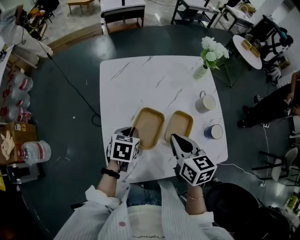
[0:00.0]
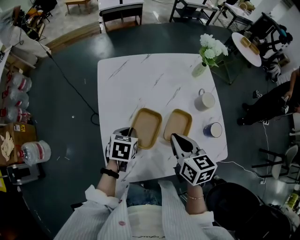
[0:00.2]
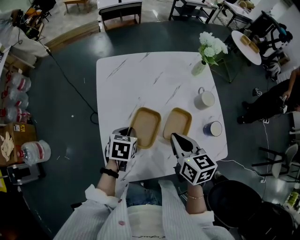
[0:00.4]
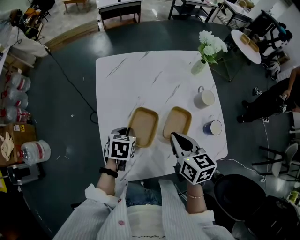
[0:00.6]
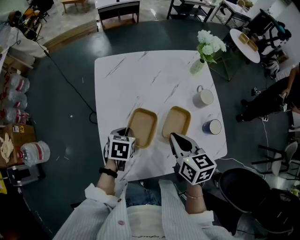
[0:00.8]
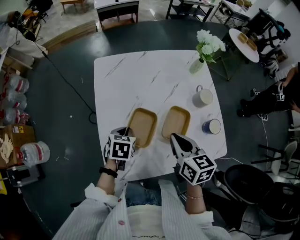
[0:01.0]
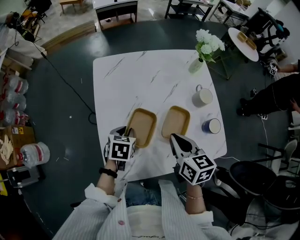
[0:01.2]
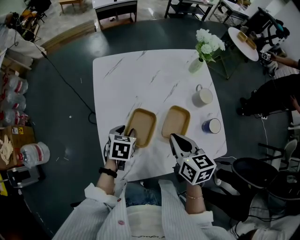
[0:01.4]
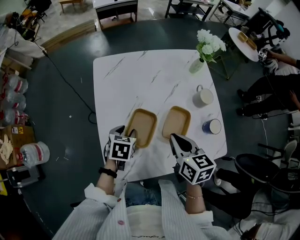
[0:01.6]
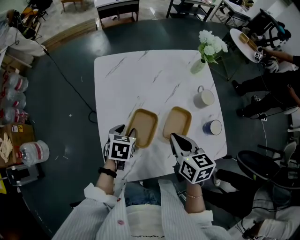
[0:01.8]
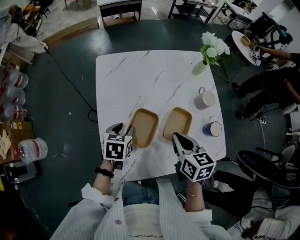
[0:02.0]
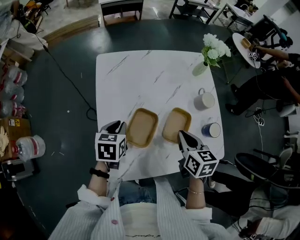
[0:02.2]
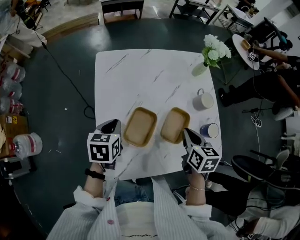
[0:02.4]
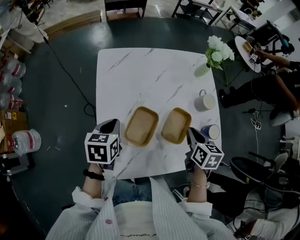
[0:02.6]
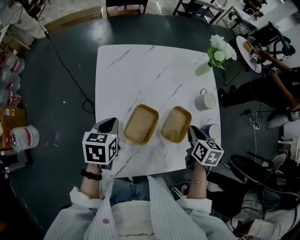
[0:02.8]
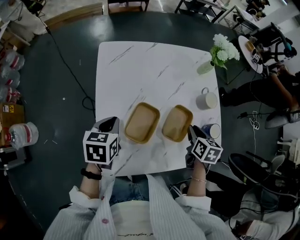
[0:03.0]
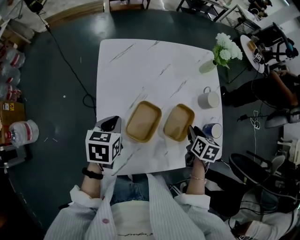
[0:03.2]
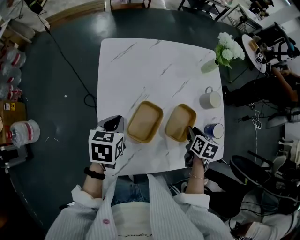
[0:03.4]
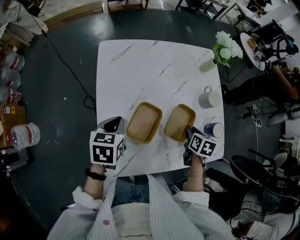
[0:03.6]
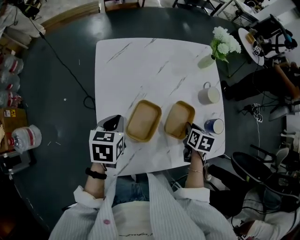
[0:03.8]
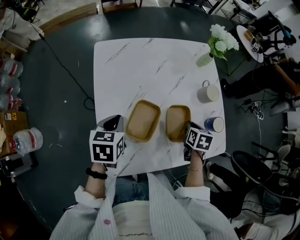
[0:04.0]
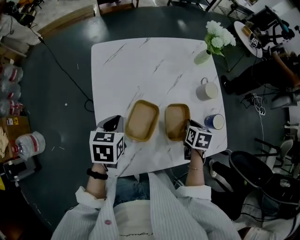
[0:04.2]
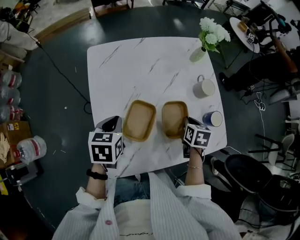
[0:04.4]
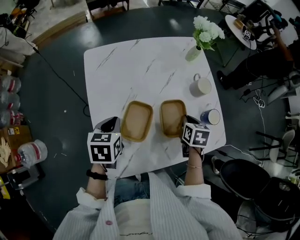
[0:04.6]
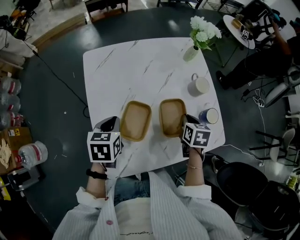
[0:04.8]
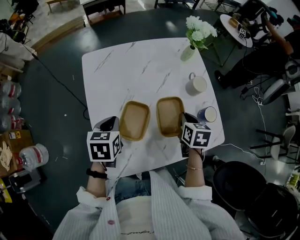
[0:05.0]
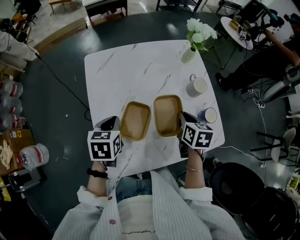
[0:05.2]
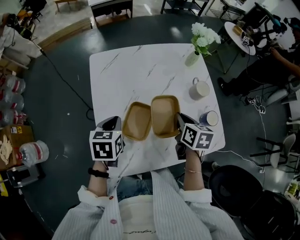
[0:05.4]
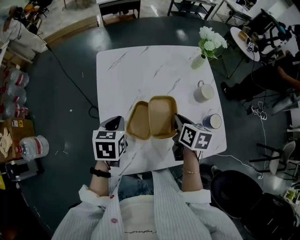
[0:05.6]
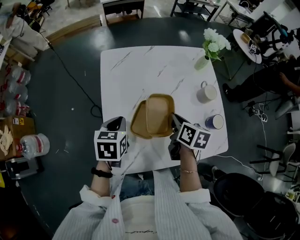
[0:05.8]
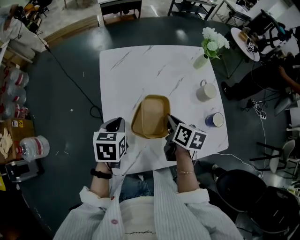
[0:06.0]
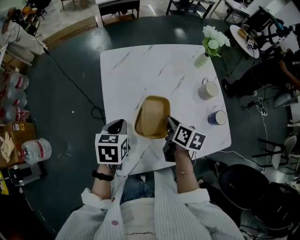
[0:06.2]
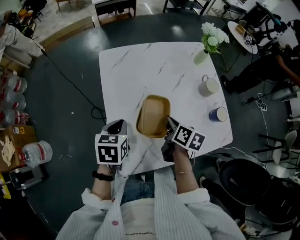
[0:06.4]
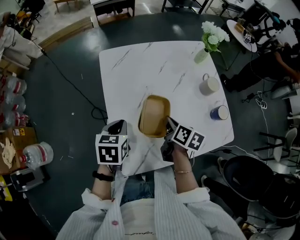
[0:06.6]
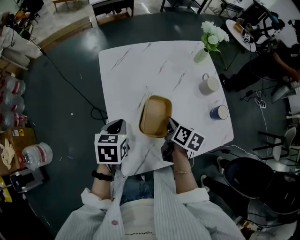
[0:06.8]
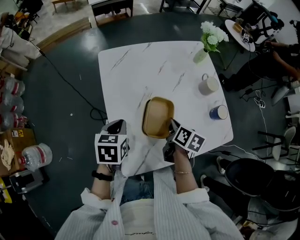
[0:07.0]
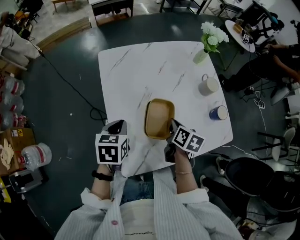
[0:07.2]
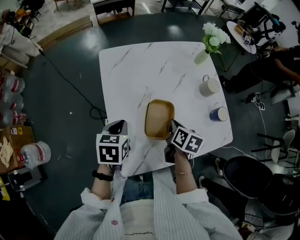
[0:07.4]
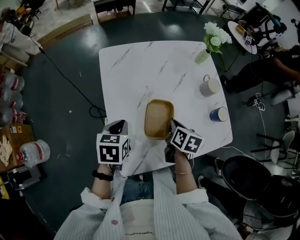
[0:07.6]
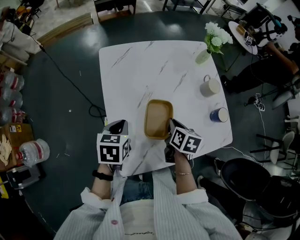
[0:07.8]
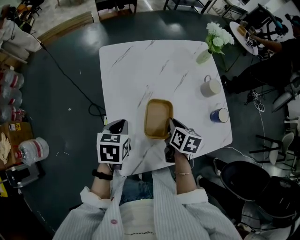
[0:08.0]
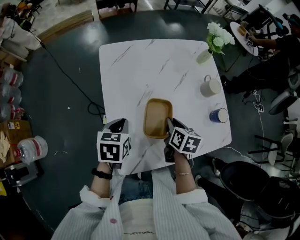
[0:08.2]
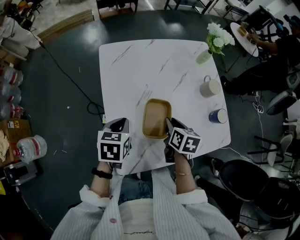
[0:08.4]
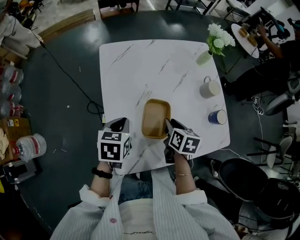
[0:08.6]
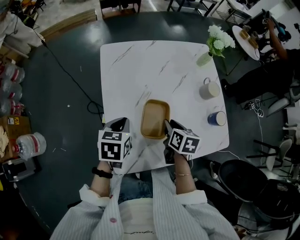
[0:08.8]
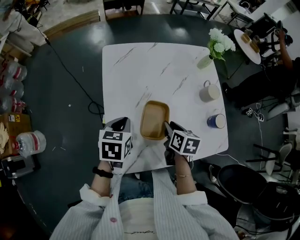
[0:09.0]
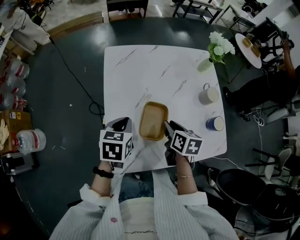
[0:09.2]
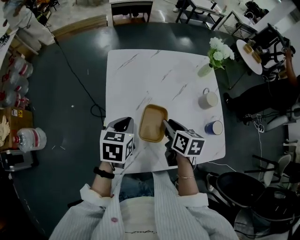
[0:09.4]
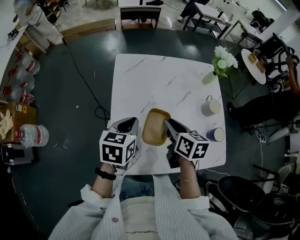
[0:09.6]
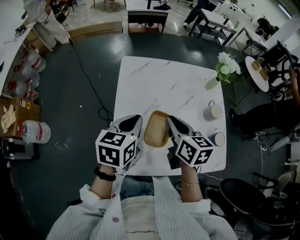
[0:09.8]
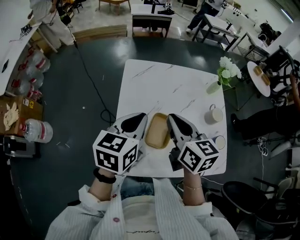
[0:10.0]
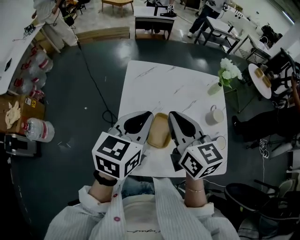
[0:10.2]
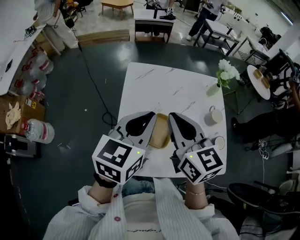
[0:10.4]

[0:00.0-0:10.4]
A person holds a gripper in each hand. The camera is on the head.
0:00.0 to 0:01.4: The left gripper opens its fingers.
0:01.4 to 0:03.0: The right gripper heads to the right and downward, covering some 15 cm, and swivels some 20 degrees, while the left gripper goes approximately 10 cm upward and to the left, and closes.
0:03.0 to 0:04.4: The grippers stay close to where they were, moving slightly.
0:04.4 to 0:06.0: The right gripper moves to the left and upward, some 15 cm, and swivels some 30 degrees.
0:06.0 to 0:07.4: The right gripper moves some 5 cm.
0:07.4 to 0:09.0: The right gripper opens.
0:09.0 to 0:10.4: Both grippers travel together upward, approximately 25 cm. The right gripper points its fingers about 40 degrees further upward, and closes up, while the left gripper angles its fingers upward, by roughly 30 degrees.

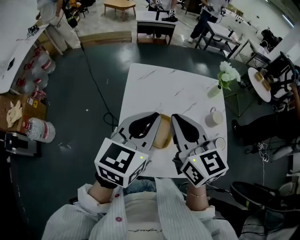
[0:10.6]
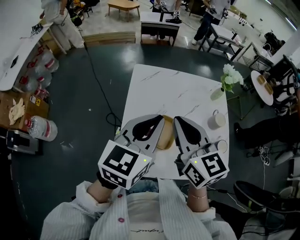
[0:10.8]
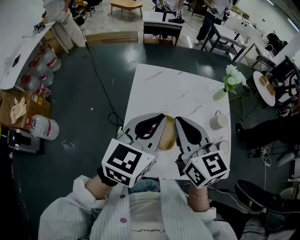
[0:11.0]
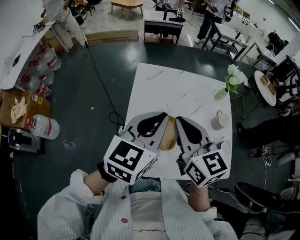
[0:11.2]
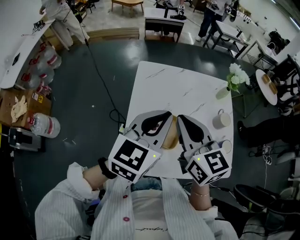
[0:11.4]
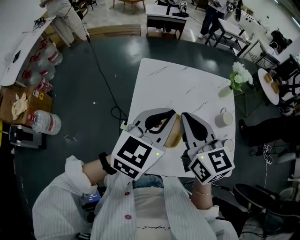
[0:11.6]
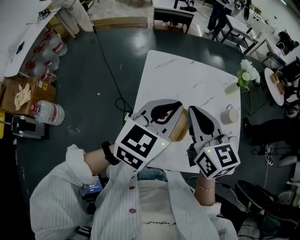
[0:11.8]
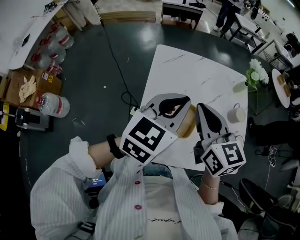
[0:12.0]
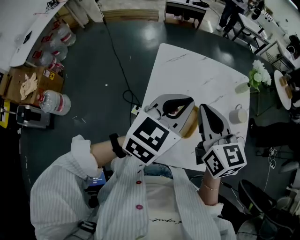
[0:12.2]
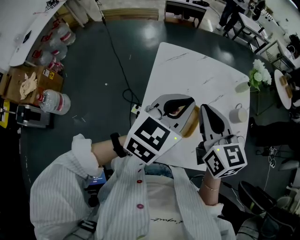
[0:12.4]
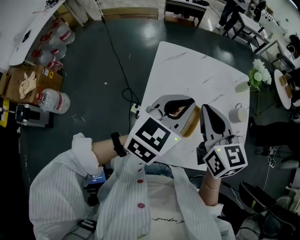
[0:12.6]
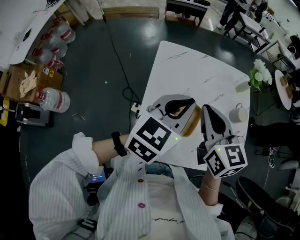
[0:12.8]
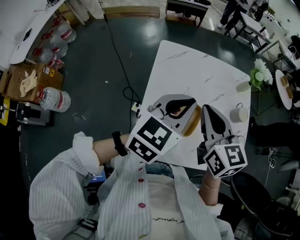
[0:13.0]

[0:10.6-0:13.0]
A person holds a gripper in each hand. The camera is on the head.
0:10.6 to 0:13.0: The grippers stay close to where they were, moving slightly.

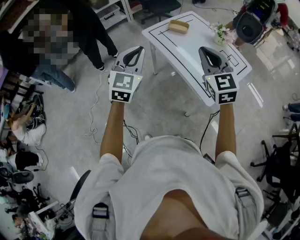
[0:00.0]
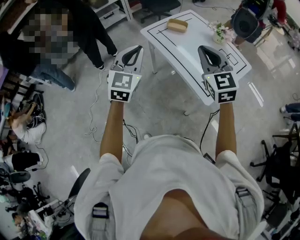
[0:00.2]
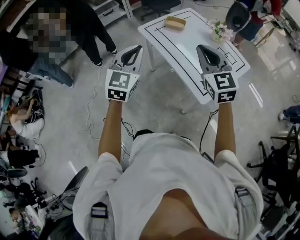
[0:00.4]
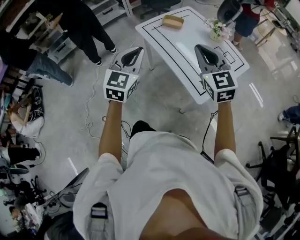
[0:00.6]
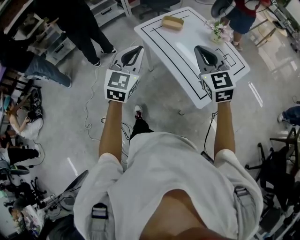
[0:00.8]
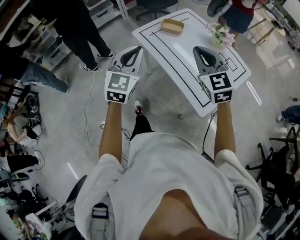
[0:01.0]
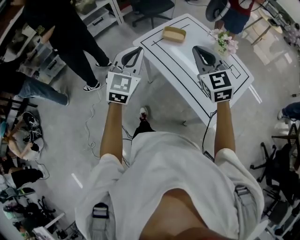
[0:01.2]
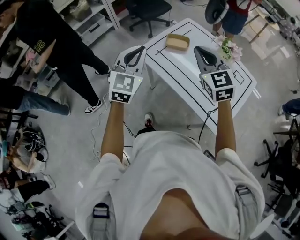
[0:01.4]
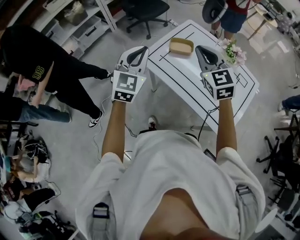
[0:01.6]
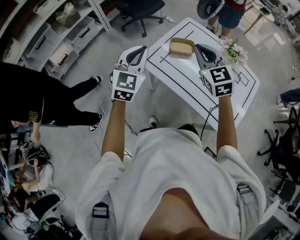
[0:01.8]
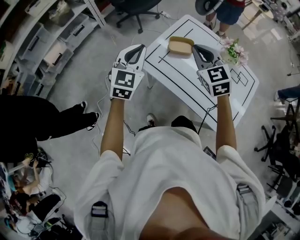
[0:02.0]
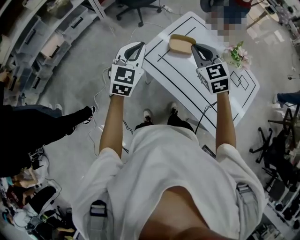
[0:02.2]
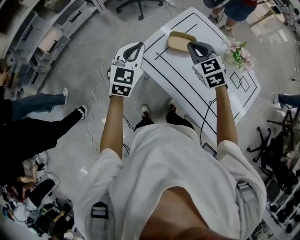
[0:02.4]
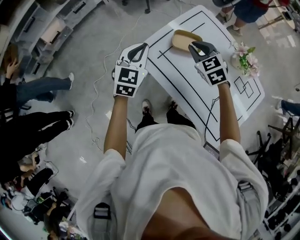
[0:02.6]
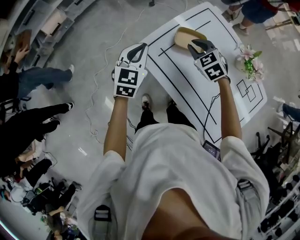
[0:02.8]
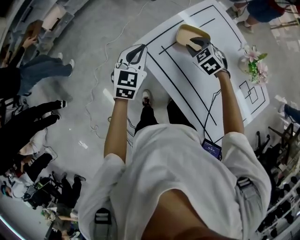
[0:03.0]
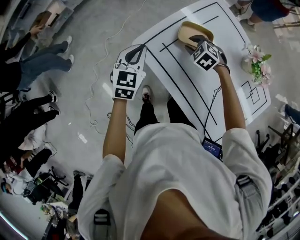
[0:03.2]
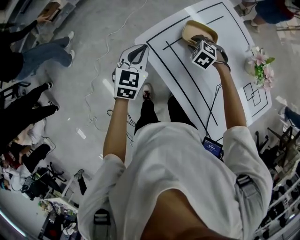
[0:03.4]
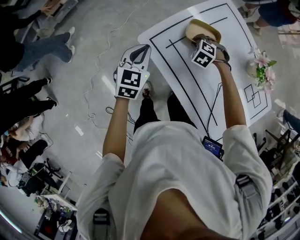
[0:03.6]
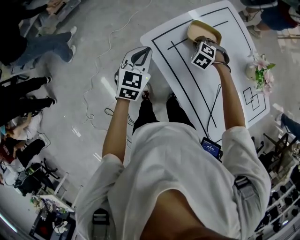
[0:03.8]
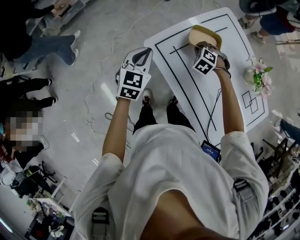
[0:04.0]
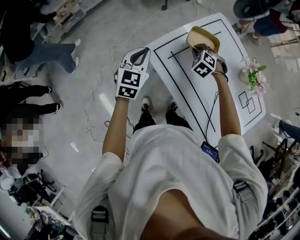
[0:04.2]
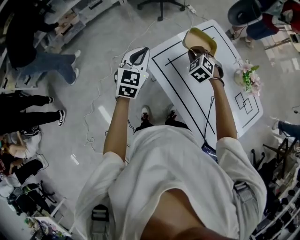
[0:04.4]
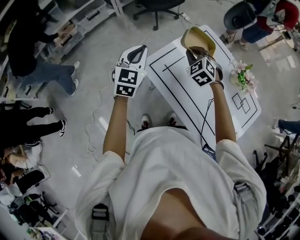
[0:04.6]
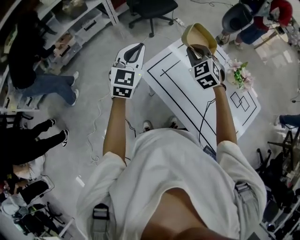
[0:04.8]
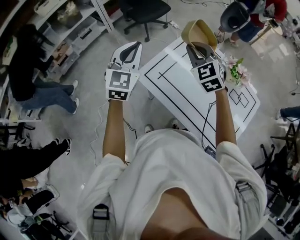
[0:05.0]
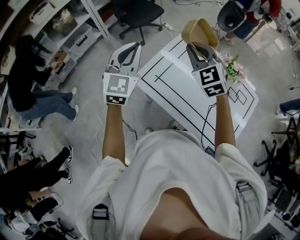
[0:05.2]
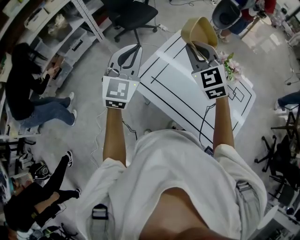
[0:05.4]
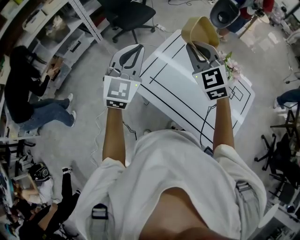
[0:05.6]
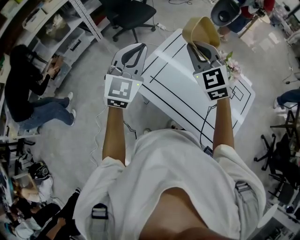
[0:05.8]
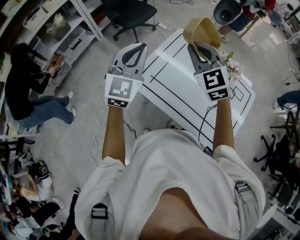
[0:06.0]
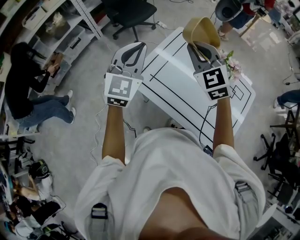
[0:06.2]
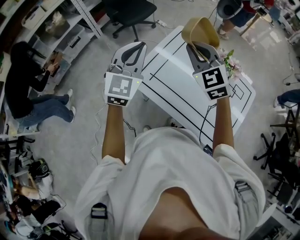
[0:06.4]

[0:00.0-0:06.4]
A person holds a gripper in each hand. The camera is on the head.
0:00.0 to 0:01.6: The grippers both shift forward by roughly 30 cm.
0:01.6 to 0:03.2: Both grippers move downward and forward, some 35 cm. The right gripper tilts its fingers roughly 50 degrees downward, and opens. The left gripper changes its angle by about 30 degrees.
0:03.2 to 0:04.8: Both grippers move upward, roughly 25 cm. The right gripper tips its fingers upward by some 30 degrees, and closes up; the left gripper turns by some 20 degrees.
0:04.8 to 0:06.4: The right gripper goes roughly 10 cm upward and to the right. Meanwhile the left gripper goes approximately 10 cm to the right and upward.

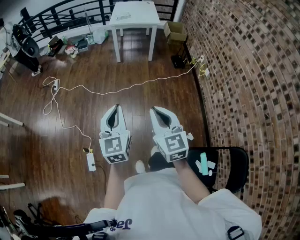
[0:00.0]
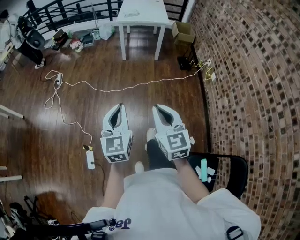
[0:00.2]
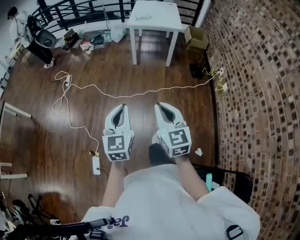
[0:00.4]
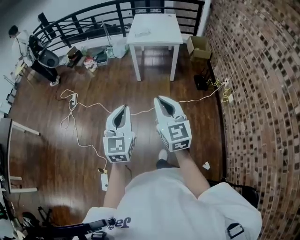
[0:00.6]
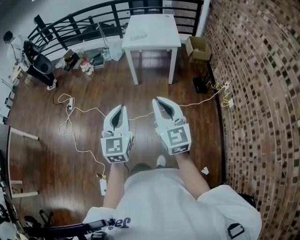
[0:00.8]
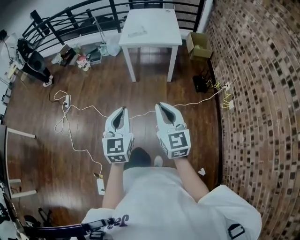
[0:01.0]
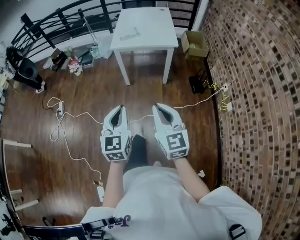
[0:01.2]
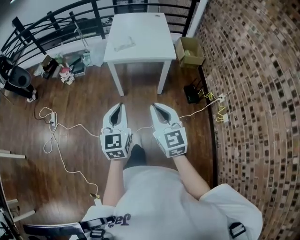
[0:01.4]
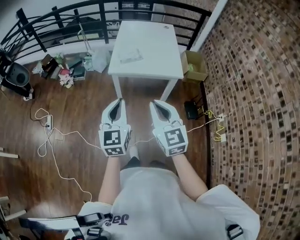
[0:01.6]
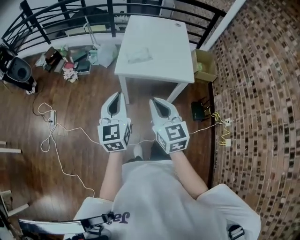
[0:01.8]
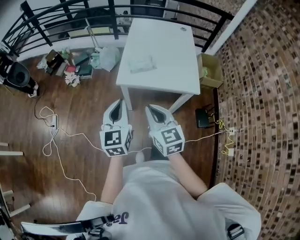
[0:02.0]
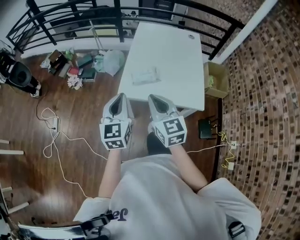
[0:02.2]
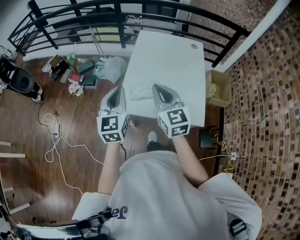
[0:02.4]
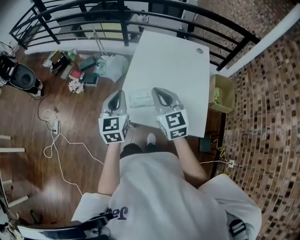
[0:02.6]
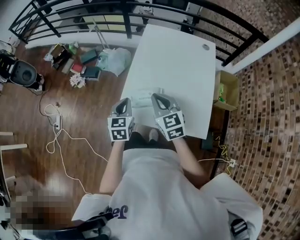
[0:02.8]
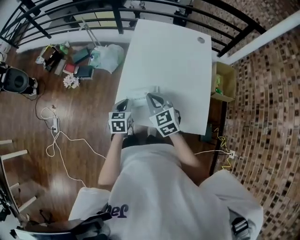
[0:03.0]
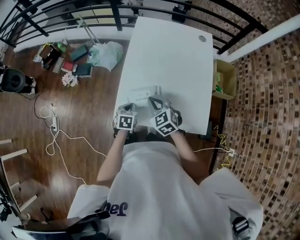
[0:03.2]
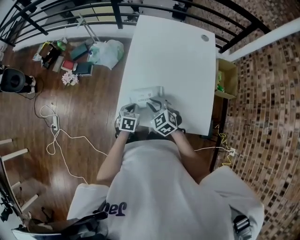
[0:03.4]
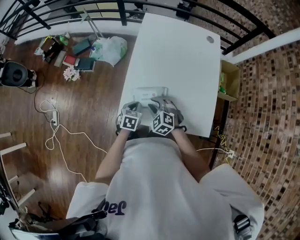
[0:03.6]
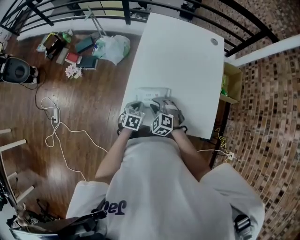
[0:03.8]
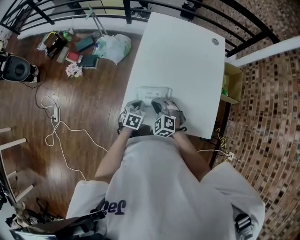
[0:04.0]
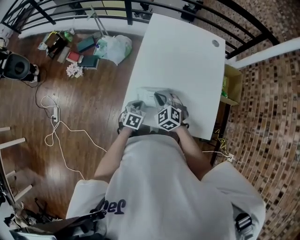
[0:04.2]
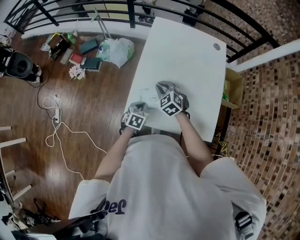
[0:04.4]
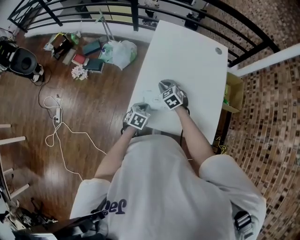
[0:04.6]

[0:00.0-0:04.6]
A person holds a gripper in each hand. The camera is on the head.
0:00.0 to 0:01.6: The pair of grippers is taken forward, approximately 80 cm.
0:01.6 to 0:03.0: The two grippers travel together, forward, some 50 cm. The left gripper travels downward by some 25 cm, and tips its fingers downward by approximately 30 degrees. The right gripper turns by about 30 degrees.
0:03.0 to 0:04.6: The right gripper goes some 20 cm downward and forward, and changes its angle by some 20 degrees; the left gripper shifts some 10 cm downward, and changes its angle by about 20 degrees.
